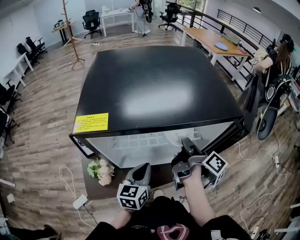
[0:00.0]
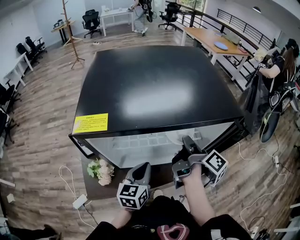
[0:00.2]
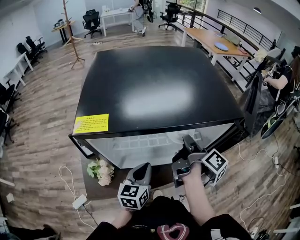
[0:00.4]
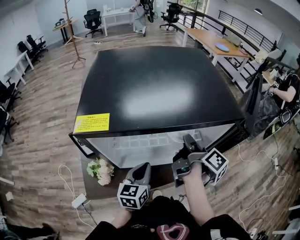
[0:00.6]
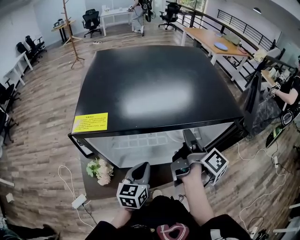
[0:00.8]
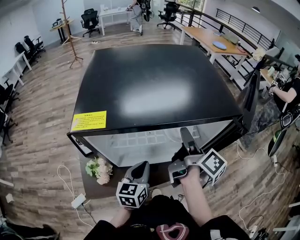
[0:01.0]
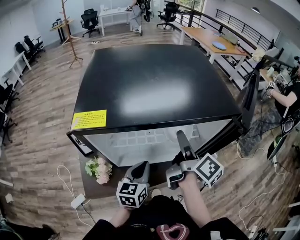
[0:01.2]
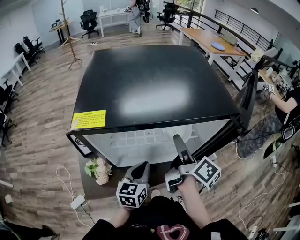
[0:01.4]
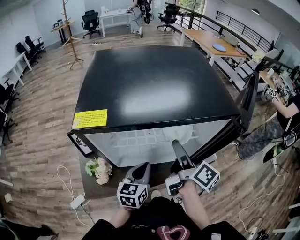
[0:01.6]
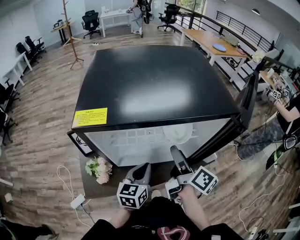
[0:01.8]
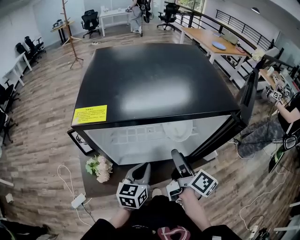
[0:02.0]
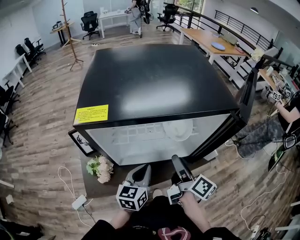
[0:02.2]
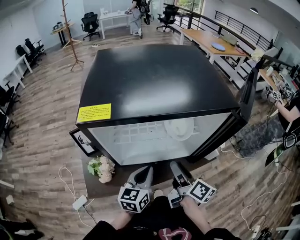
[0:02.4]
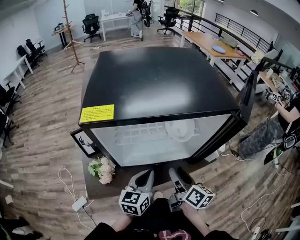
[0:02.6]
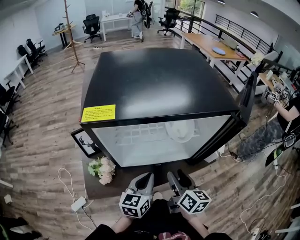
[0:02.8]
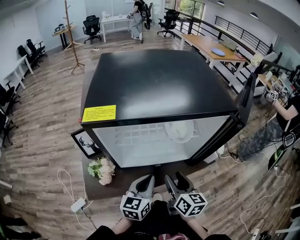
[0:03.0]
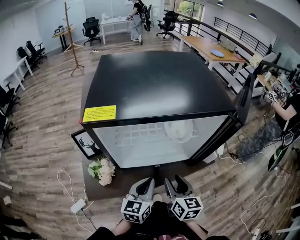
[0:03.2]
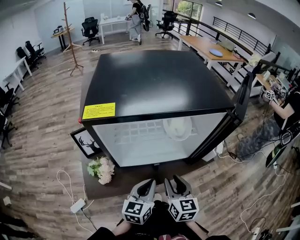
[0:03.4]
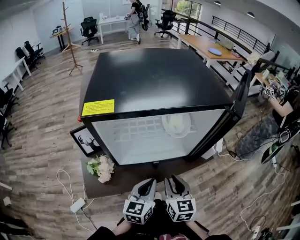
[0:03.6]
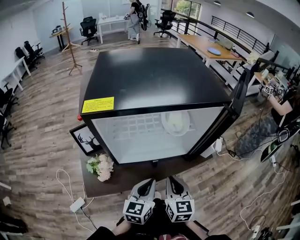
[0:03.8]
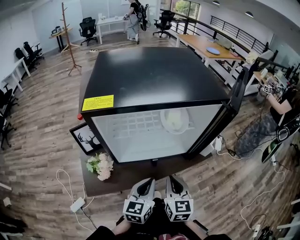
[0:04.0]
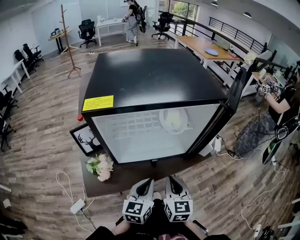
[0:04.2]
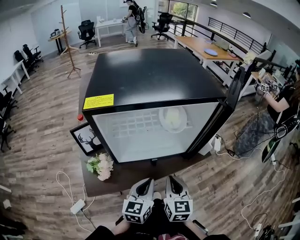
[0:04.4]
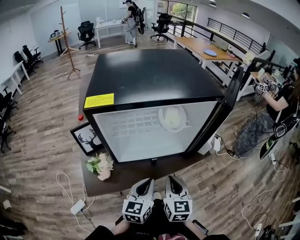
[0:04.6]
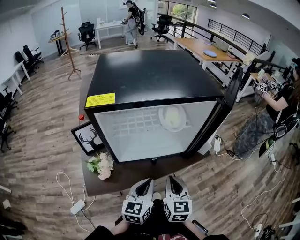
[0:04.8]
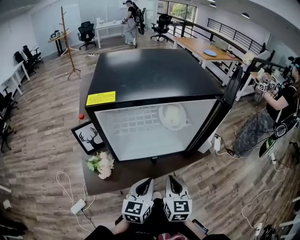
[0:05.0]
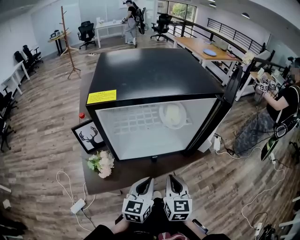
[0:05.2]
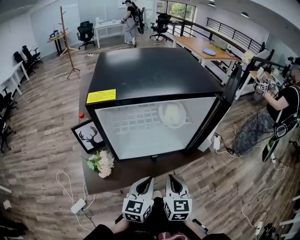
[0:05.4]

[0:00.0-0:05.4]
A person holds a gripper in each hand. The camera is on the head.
0.0 to 1.4 s: The right gripper rotates roughly 20 degrees, and opens up.
1.4 to 2.8 s: The left gripper travels backward by some 5 cm; the right gripper moves backward and downward, some 15 cm, and swivels about 30 degrees.
2.8 to 4.0 s: Both grippers move backward, some 5 cm. The right gripper rotates some 30 degrees, and closes.
4.0 to 5.4 s: The grippers make only small movements.

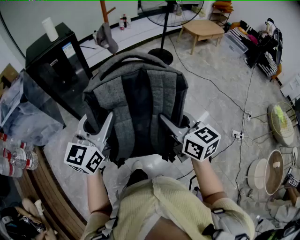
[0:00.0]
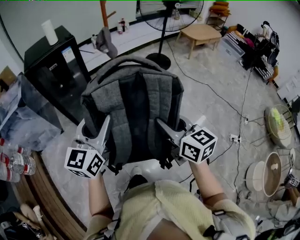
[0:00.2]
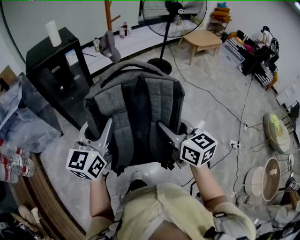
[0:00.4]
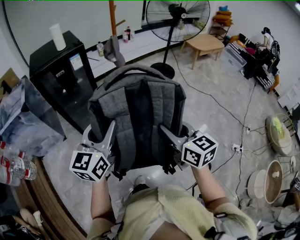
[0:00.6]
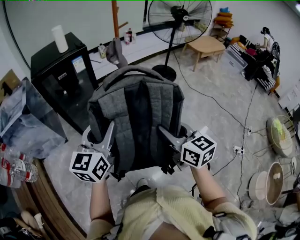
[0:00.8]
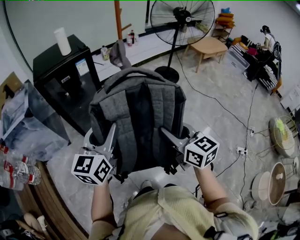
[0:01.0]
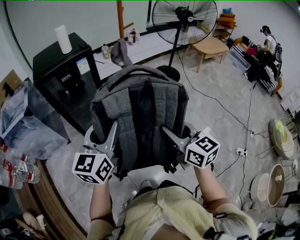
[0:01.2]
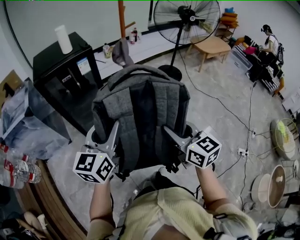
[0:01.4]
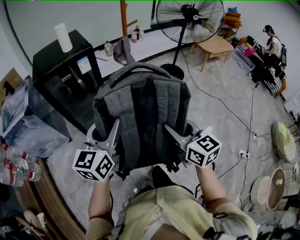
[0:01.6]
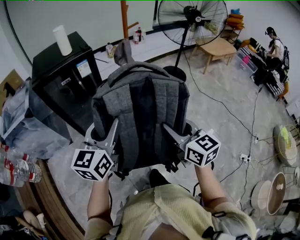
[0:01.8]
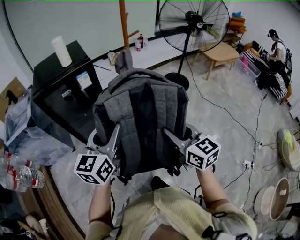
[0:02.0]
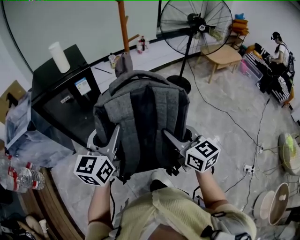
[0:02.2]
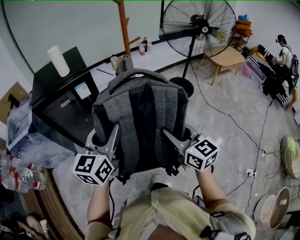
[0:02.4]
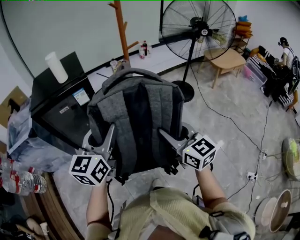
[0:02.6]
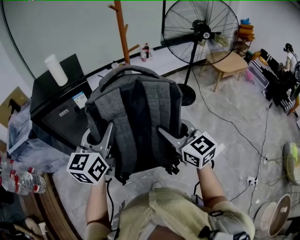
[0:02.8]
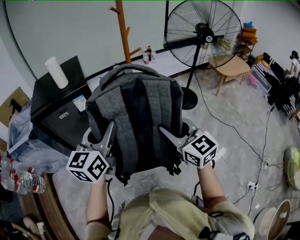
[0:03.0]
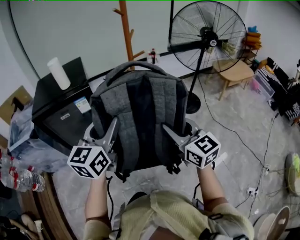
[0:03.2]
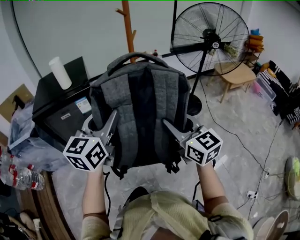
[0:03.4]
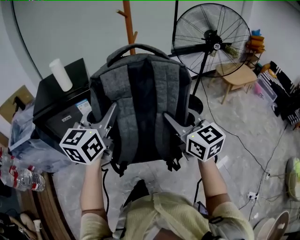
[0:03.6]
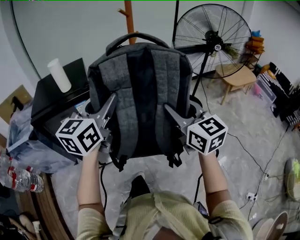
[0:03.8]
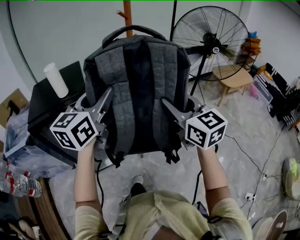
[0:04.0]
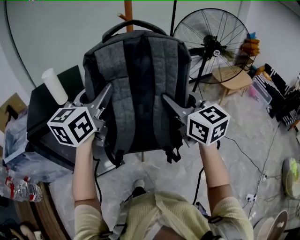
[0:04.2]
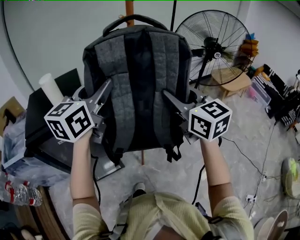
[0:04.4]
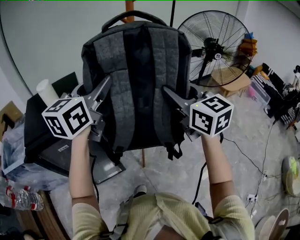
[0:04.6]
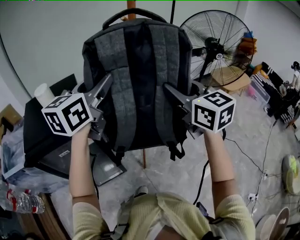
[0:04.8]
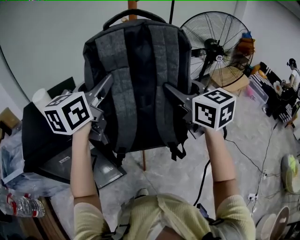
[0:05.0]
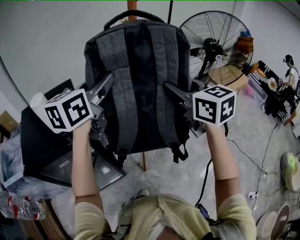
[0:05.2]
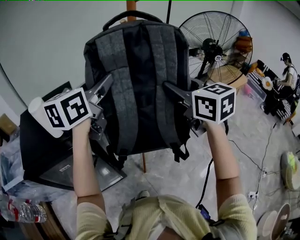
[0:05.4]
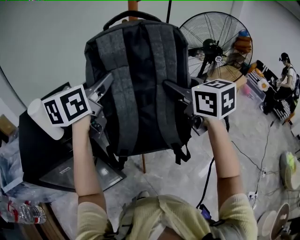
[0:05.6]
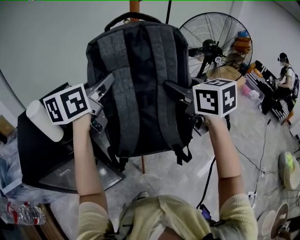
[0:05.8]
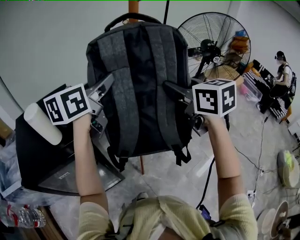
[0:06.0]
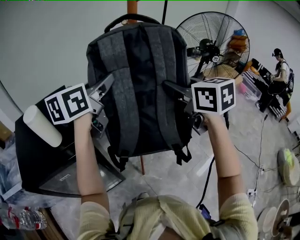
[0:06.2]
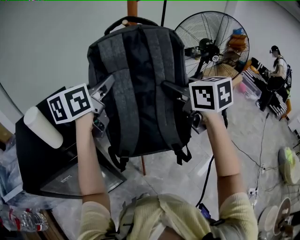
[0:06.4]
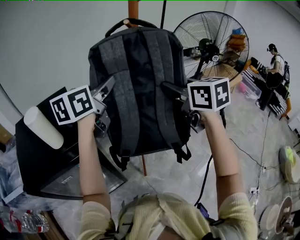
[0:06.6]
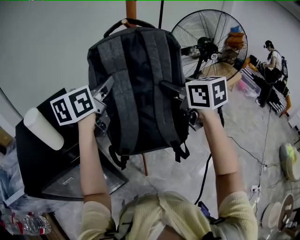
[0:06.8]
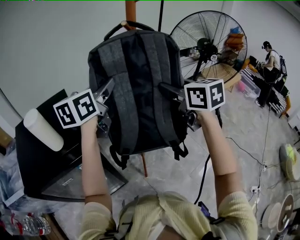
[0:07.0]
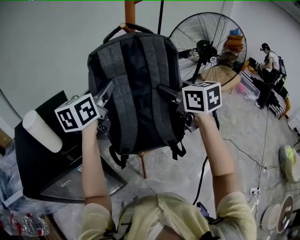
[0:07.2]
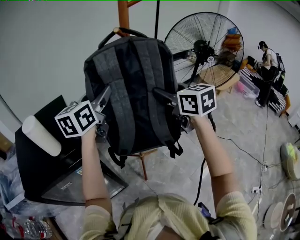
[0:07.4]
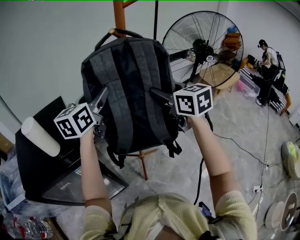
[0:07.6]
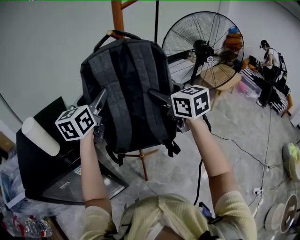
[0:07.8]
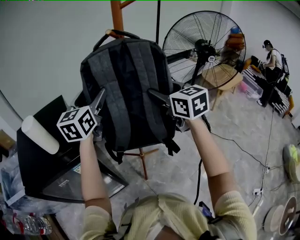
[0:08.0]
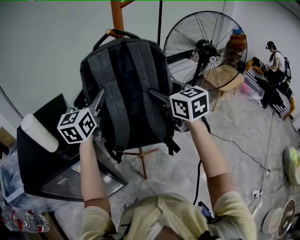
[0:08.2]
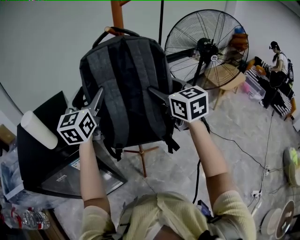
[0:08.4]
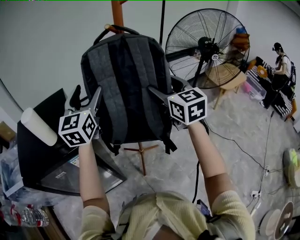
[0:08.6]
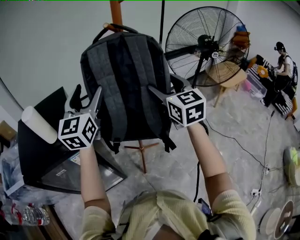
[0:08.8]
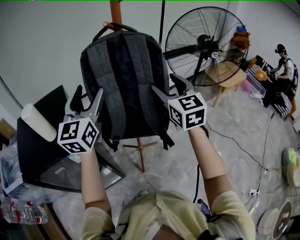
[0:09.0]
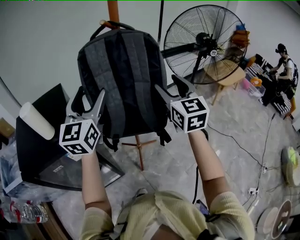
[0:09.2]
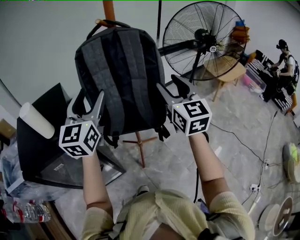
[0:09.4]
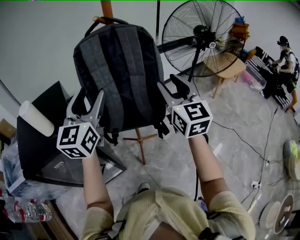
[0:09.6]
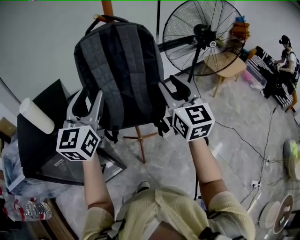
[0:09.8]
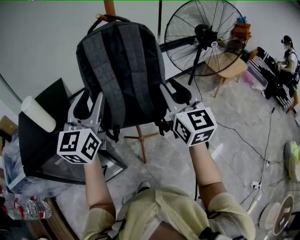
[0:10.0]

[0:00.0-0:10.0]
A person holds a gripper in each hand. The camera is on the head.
0.0 to 1.4 s: The two grippers go some 15 cm forward and to the left.
1.4 to 2.8 s: The grippers both shift forward by roughly 20 cm.
2.8 to 4.2 s: The two grippers go some 20 cm forward and upward.
4.2 to 5.8 s: The grippers both shift forward by roughly 20 cm.
5.8 to 7.2 s: The two grippers go approximately 5 cm forward.
7.2 to 8.6 s: The right gripper opens its fingers, while the left gripper shifts by approximately 5 cm, turns by some 30 degrees, and opens its fingers.
8.6 to 10.0 s: The left gripper goes roughly 15 cm backward and to the right, and closes. The right gripper travels backward by some 10 cm, and closes its fingers.

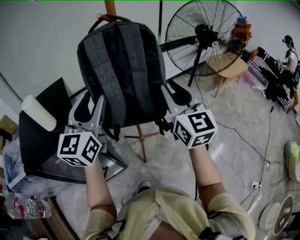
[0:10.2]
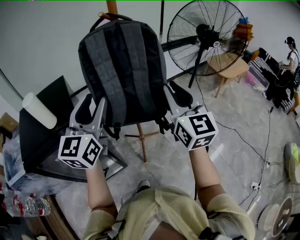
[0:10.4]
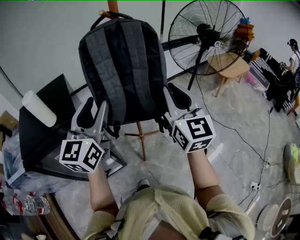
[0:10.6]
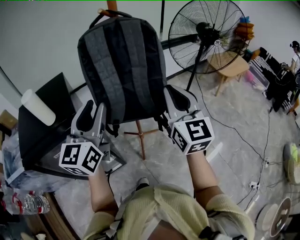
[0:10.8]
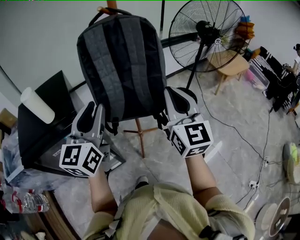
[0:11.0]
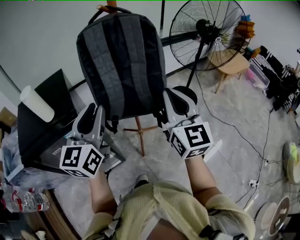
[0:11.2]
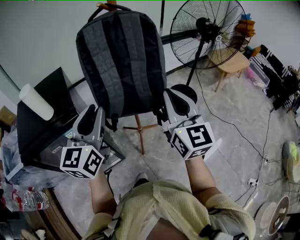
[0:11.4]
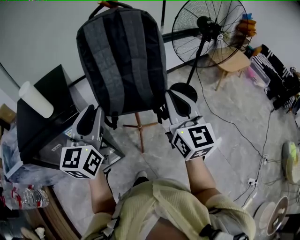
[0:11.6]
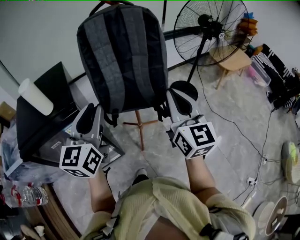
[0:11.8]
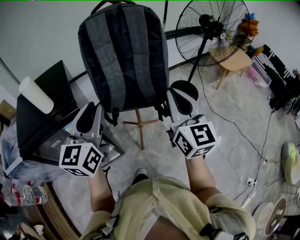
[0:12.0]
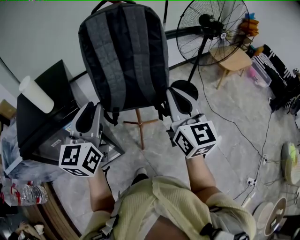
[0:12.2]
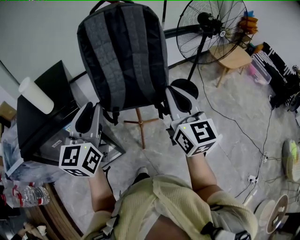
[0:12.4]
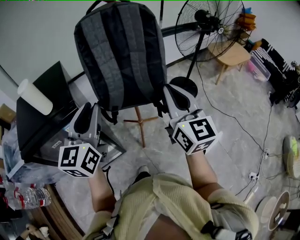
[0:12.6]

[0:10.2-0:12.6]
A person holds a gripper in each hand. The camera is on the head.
10.2 to 11.4 s: The left gripper moves backward, about 5 cm, while the right gripper ends up about 5 cm from where it was.
11.4 to 12.6 s: The grippers make only small movements.

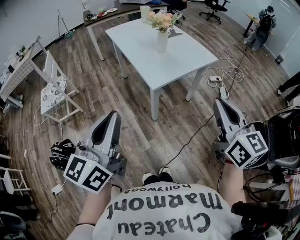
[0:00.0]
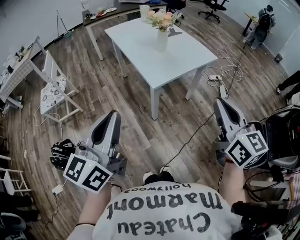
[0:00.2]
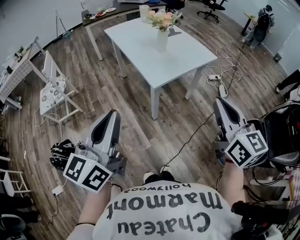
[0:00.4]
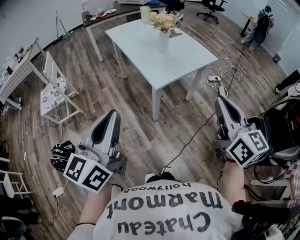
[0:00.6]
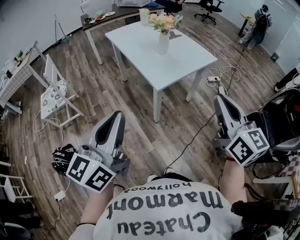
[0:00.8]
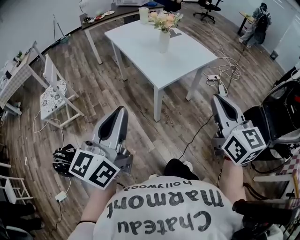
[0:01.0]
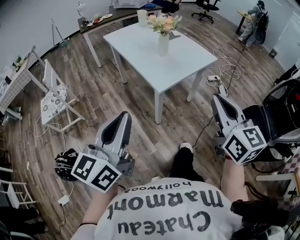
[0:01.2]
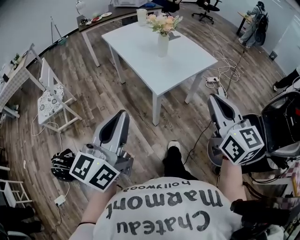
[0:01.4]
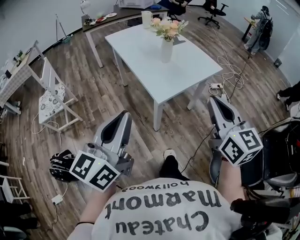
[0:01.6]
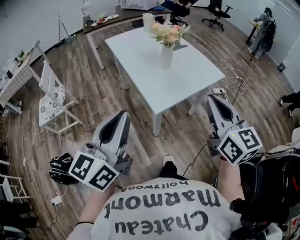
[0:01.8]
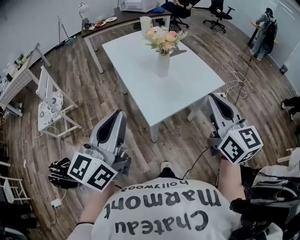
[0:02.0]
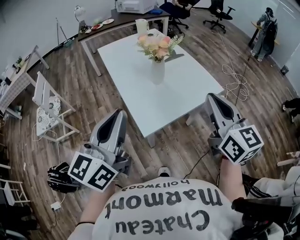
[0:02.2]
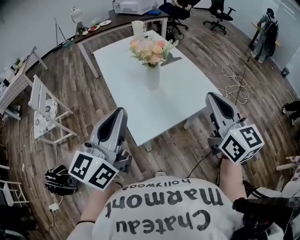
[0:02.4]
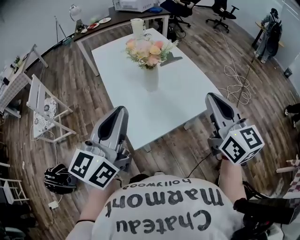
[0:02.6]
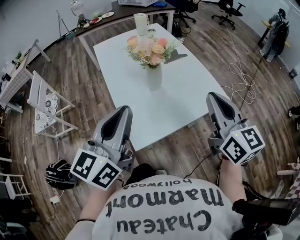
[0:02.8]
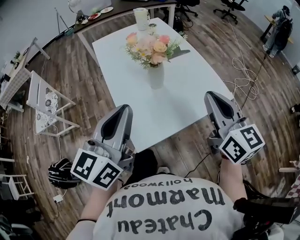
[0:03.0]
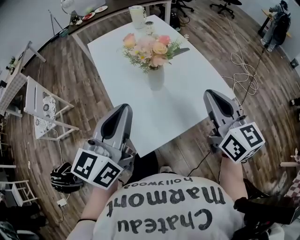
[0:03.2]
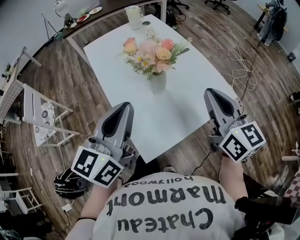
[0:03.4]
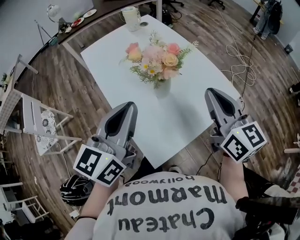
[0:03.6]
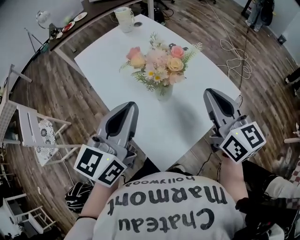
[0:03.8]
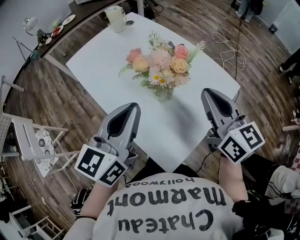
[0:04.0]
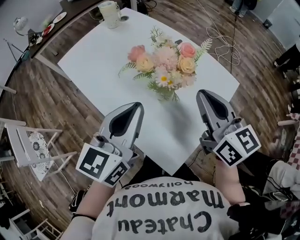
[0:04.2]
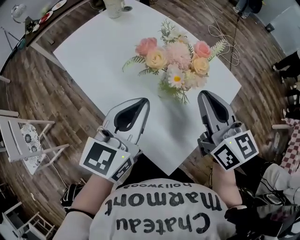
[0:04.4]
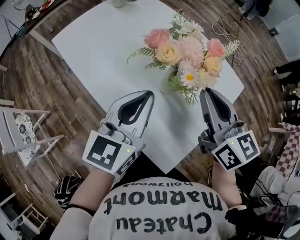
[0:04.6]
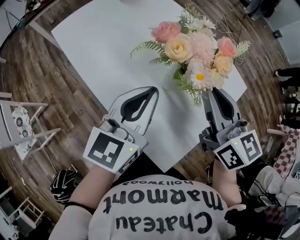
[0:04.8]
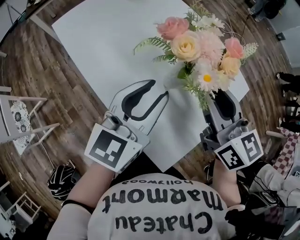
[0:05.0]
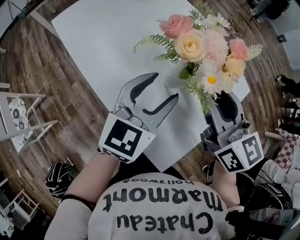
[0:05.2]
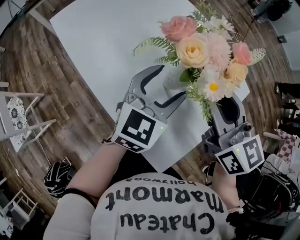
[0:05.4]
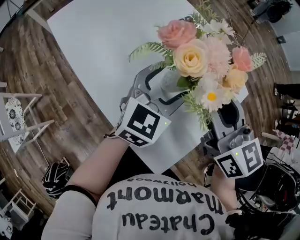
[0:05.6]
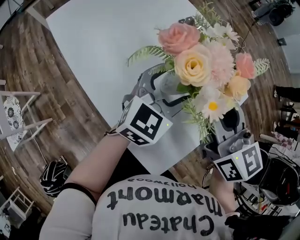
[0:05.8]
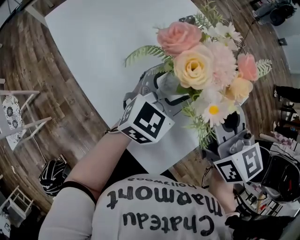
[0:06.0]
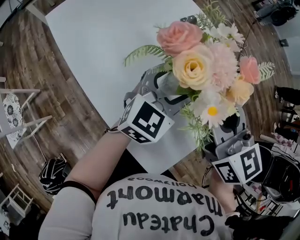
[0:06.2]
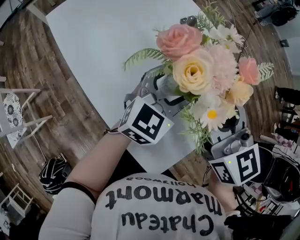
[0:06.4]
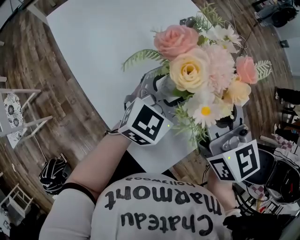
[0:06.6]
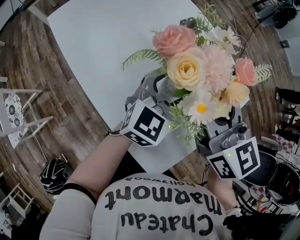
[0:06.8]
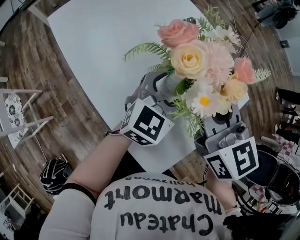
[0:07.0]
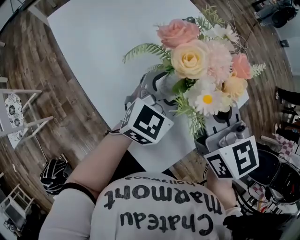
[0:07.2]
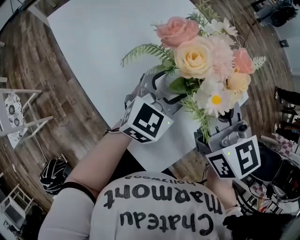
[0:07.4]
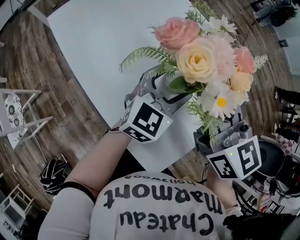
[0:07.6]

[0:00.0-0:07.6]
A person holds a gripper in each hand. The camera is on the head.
0.0 to 1.6 s: The right gripper travels forward and to the left by about 10 cm. The left gripper shifts about 10 cm forward.
1.6 to 3.0 s: The right gripper travels forward by roughly 30 cm, while the left gripper travels forward and to the right by some 30 cm.
3.0 to 4.6 s: The left gripper is displaced forward and downward by roughly 20 cm, and changes its angle by approximately 30 degrees. The right gripper moves to the left, forward and downward, roughly 20 cm.
4.6 to 6.0 s: The right gripper opens, while the left gripper goes roughly 15 cm to the right, downward and forward, changes its angle by about 20 degrees, and opens.
6.0 to 7.6 s: The right gripper closes.
